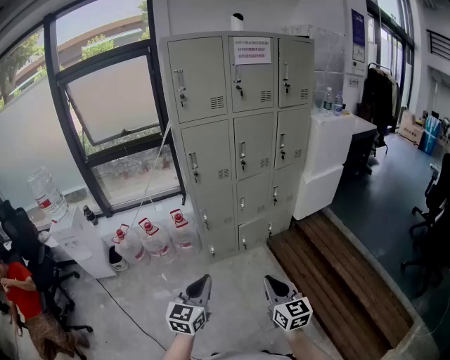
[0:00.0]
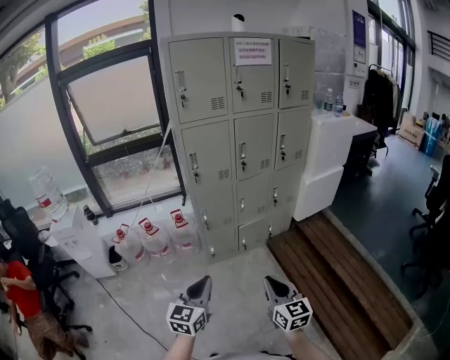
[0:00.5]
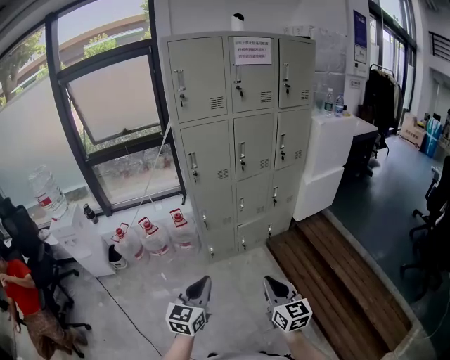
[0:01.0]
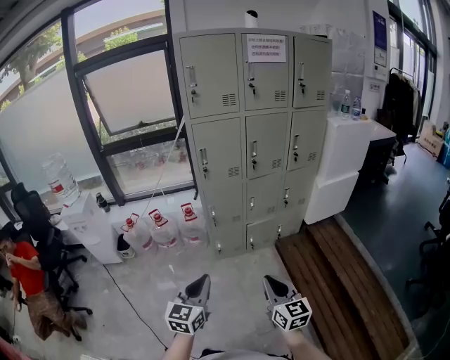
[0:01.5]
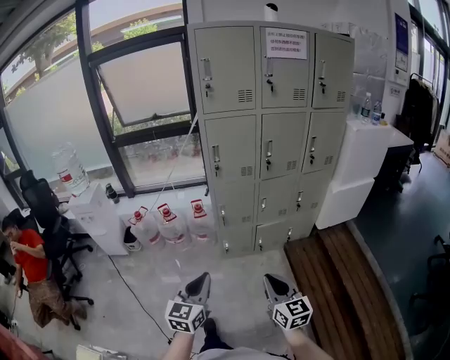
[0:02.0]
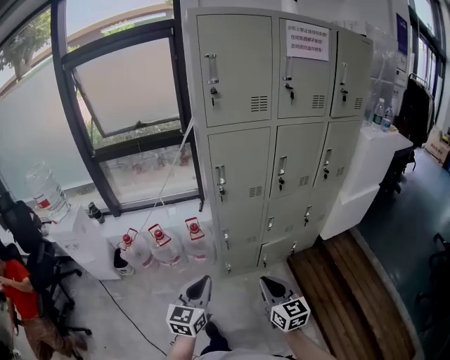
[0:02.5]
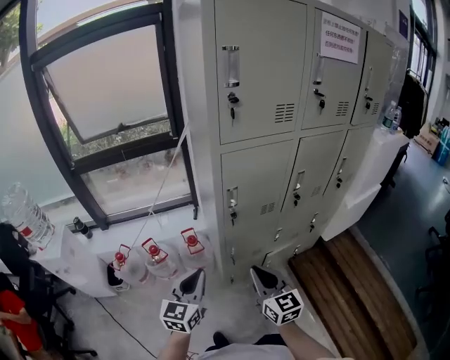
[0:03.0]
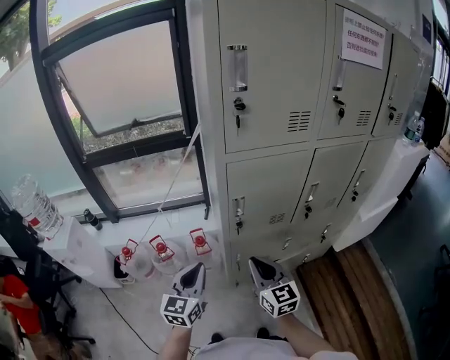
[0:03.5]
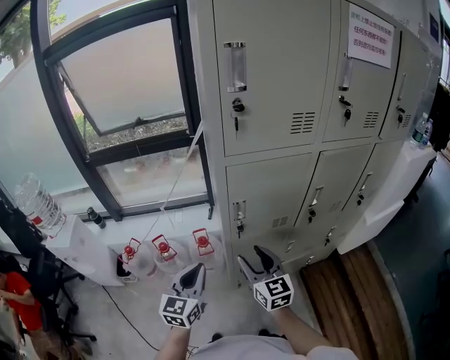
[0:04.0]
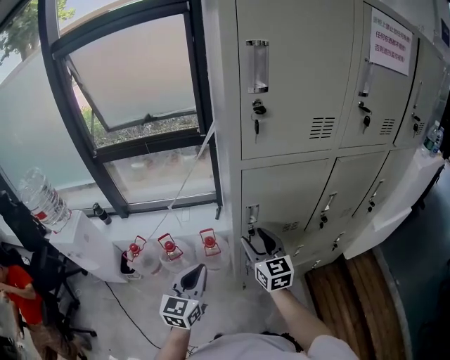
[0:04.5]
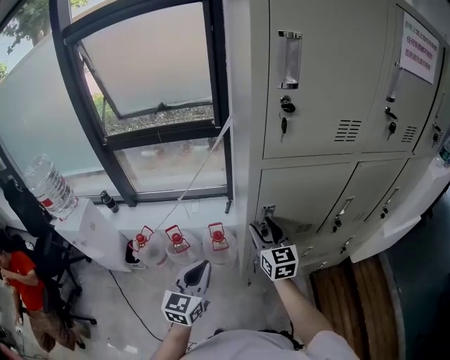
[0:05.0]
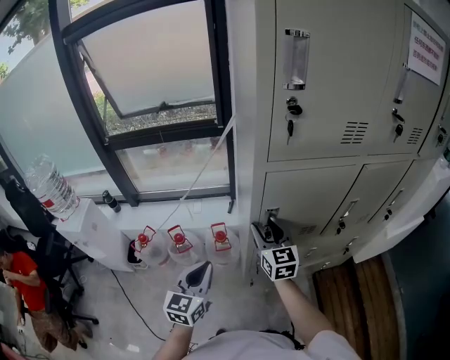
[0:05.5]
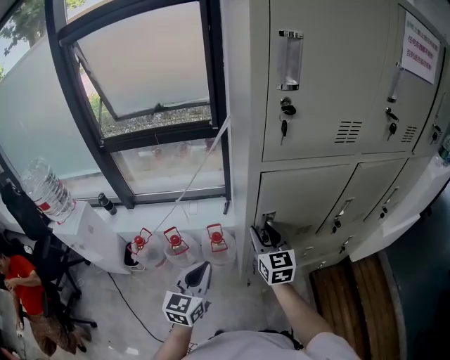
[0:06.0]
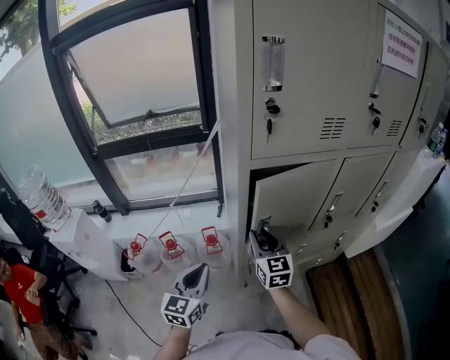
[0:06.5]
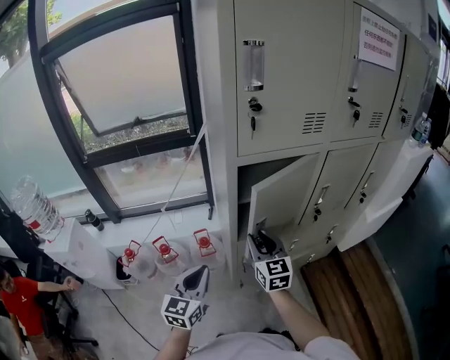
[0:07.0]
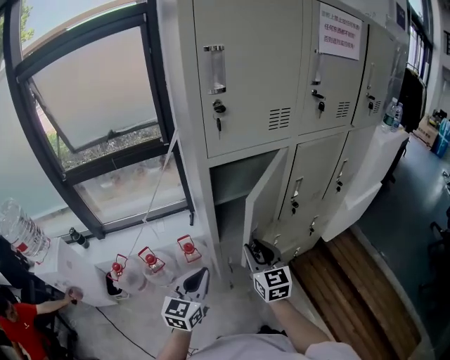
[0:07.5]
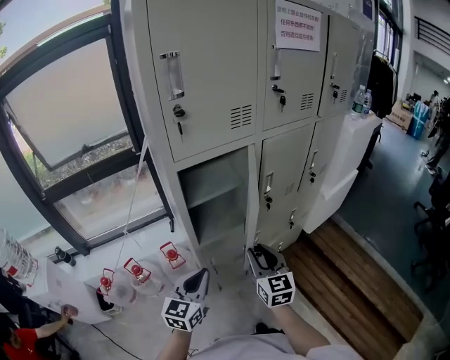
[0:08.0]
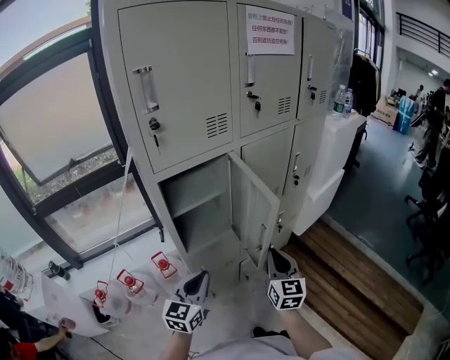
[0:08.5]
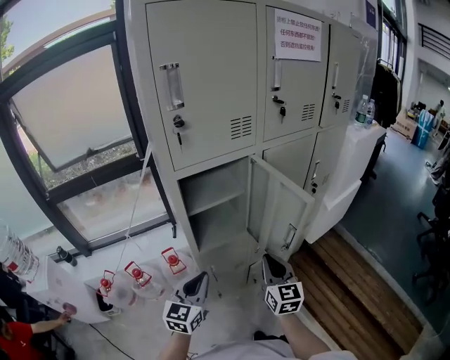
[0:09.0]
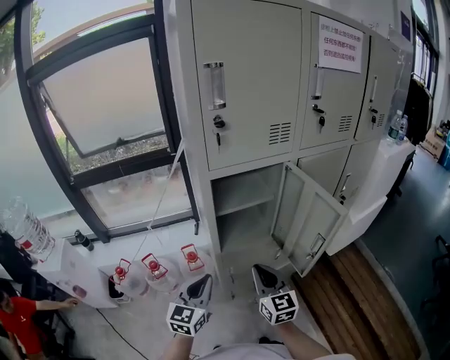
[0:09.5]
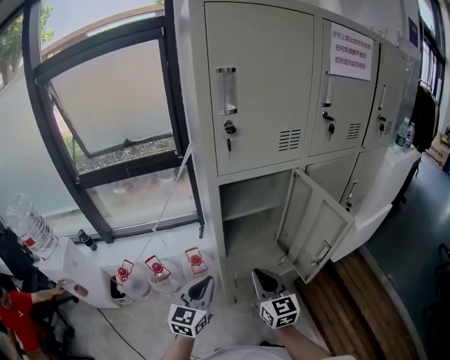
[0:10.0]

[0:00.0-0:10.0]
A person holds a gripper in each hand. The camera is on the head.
0:00.0 to 0:02.0: The right gripper travels forward by approximately 5 cm.
0:02.0 to 0:04.0: Both grippers are carried forward, roughly 50 cm. The right gripper opens.
0:04.0 to 0:06.0: The right gripper heads forward, covering about 15 cm. The left gripper changes place by some 5 cm.
0:06.0 to 0:08.0: The right gripper goes about 20 cm to the right and backward, and changes its angle by about 20 degrees. The left gripper shifts roughly 15 cm to the right, and changes its angle by some 20 degrees.
0:08.0 to 0:10.0: The grippers both shift to the left by roughly 5 cm. The right gripper closes its fingers.

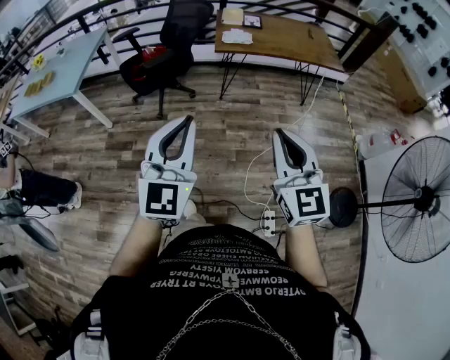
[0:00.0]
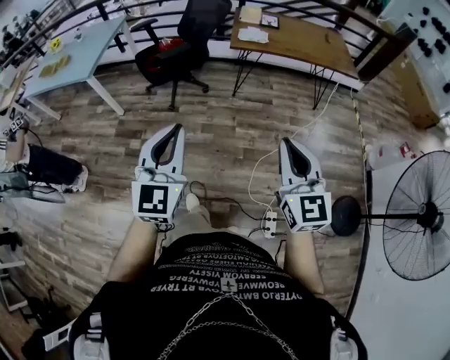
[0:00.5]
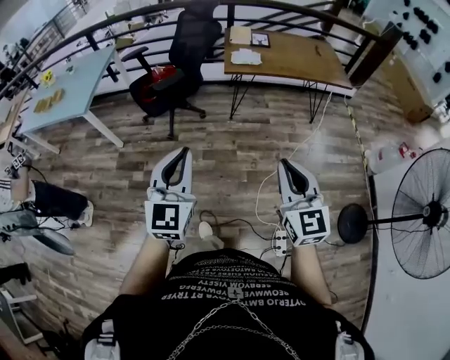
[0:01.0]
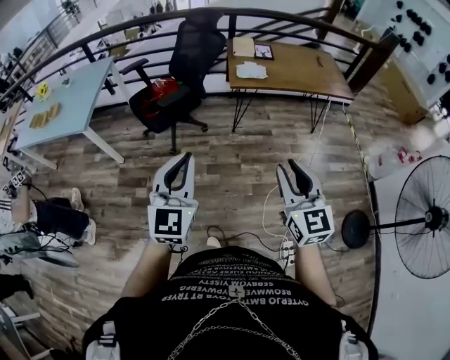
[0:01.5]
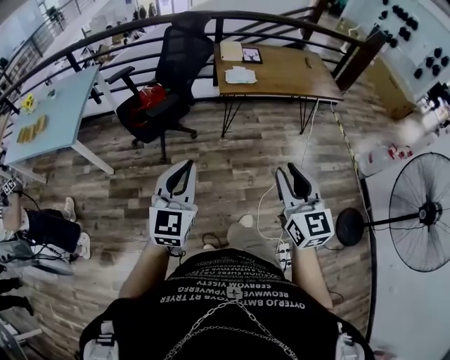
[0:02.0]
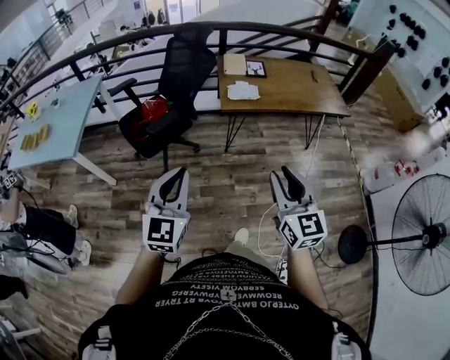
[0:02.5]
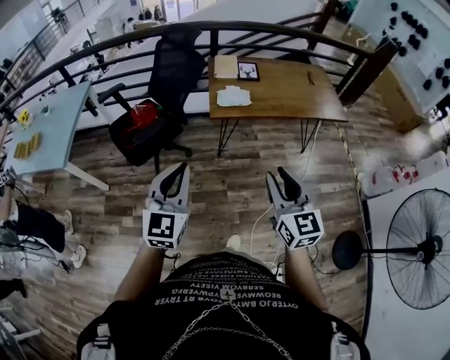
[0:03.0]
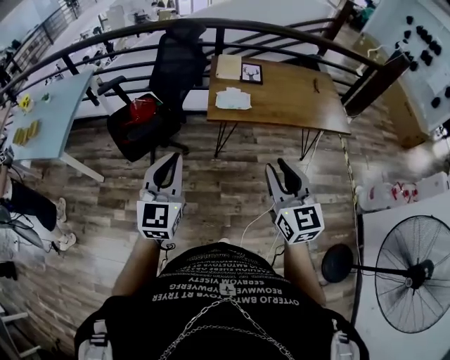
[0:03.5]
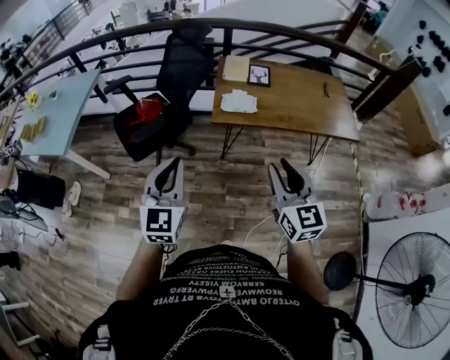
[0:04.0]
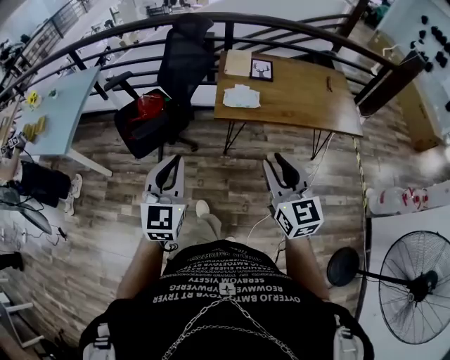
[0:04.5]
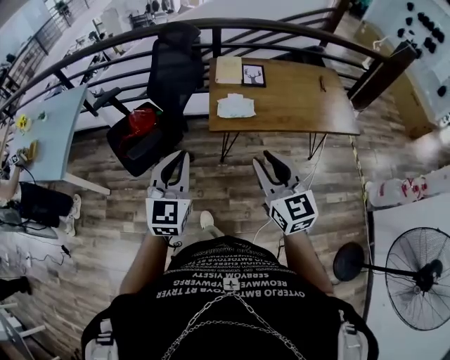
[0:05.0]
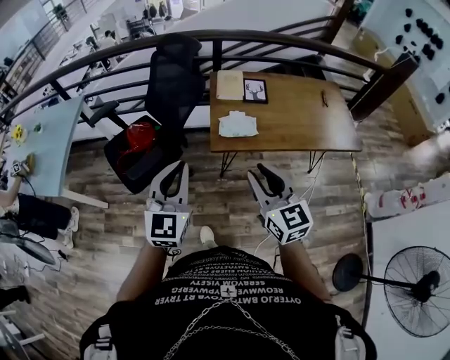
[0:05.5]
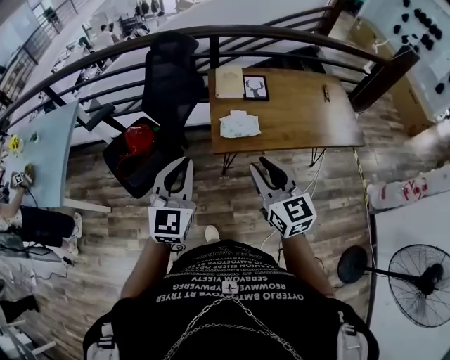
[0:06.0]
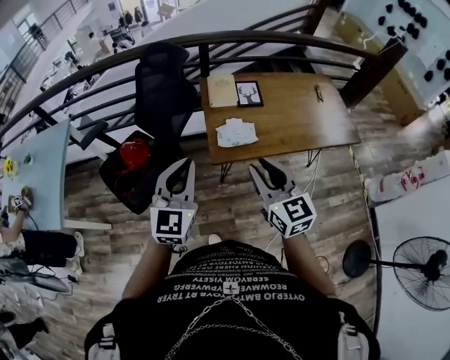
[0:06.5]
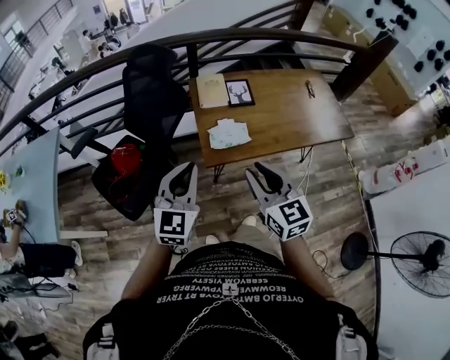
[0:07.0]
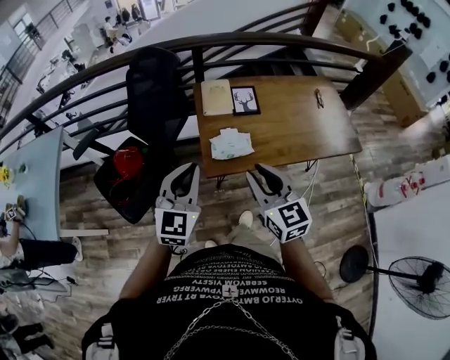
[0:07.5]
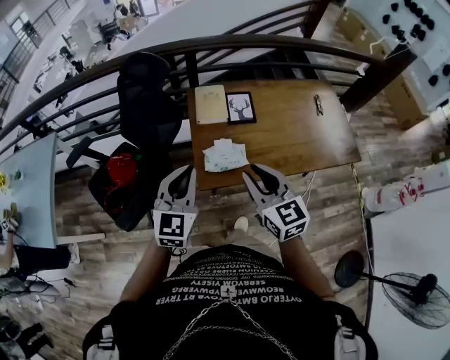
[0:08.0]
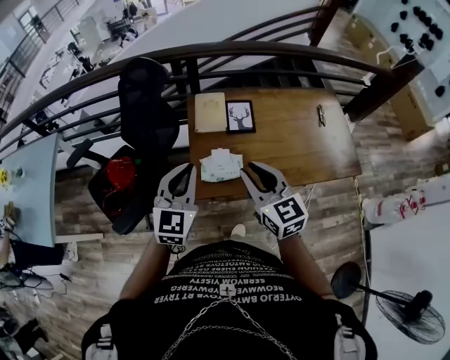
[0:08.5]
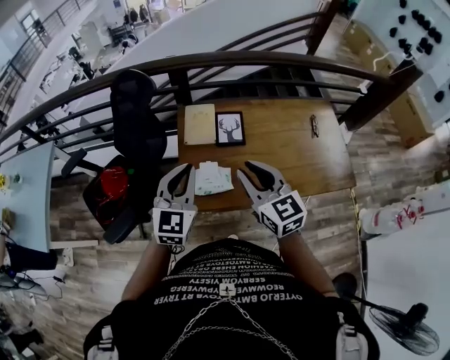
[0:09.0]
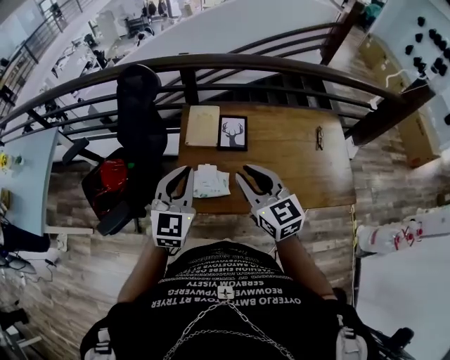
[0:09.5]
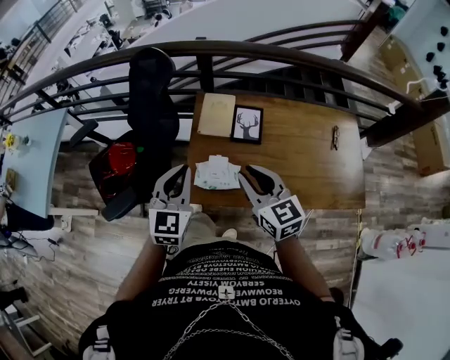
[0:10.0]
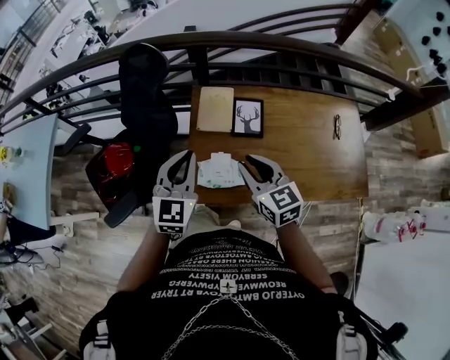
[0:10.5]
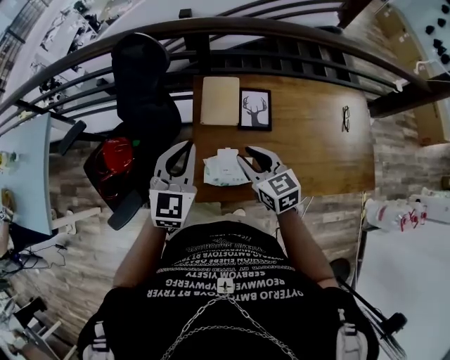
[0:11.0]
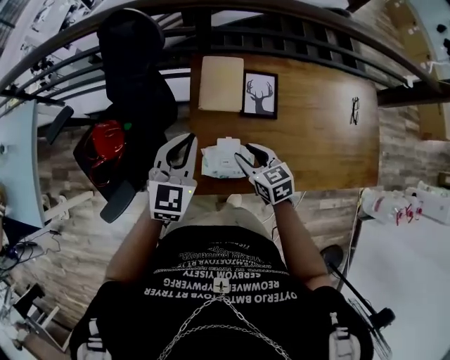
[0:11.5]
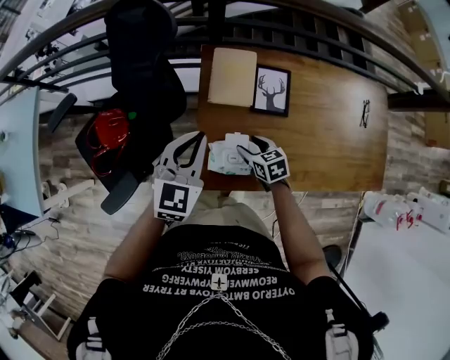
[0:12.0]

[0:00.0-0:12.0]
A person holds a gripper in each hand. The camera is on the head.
0:00.0 to 0:02.0: The left gripper goes approximately 20 cm forward, to the left and downward. The right gripper heads forward and to the left, covering roughly 15 cm, and opens up.
0:02.0 to 0:04.0: The grippers both shift forward and to the right by roughly 30 cm.
0:04.0 to 0:06.0: The right gripper shifts approximately 20 cm forward and to the left. The left gripper moves forward, roughly 20 cm.
0:06.0 to 0:08.0: The two grippers go approximately 15 cm forward.
0:08.0 to 0:10.0: The grippers both shift forward and to the right by some 10 cm.
0:10.0 to 0:12.0: The right gripper heads downward, covering about 30 cm, tips its fingers downward by approximately 30 degrees, and opens up, while the left gripper is displaced forward and downward by approximately 15 cm.

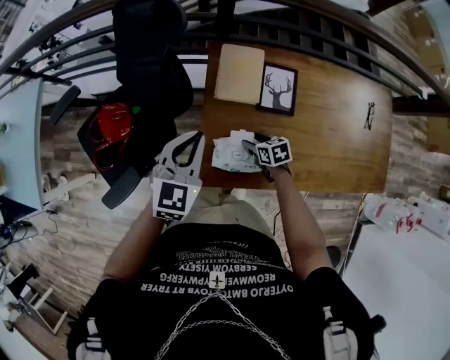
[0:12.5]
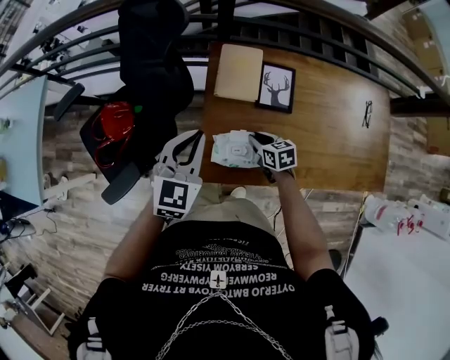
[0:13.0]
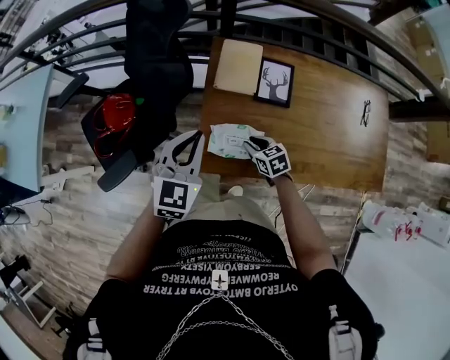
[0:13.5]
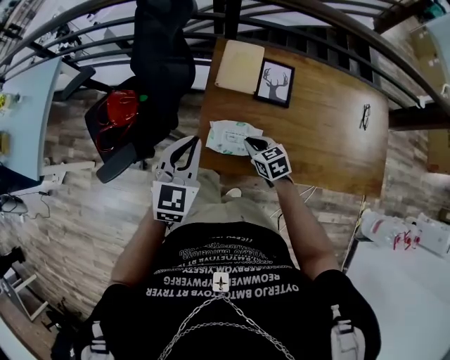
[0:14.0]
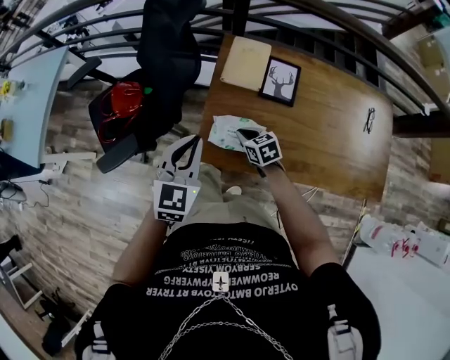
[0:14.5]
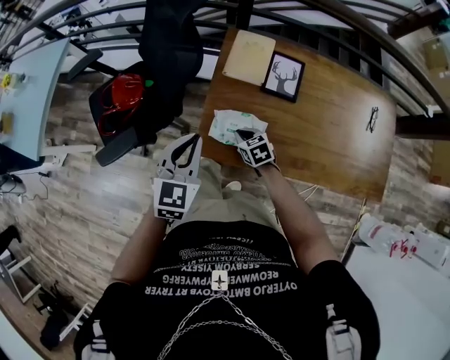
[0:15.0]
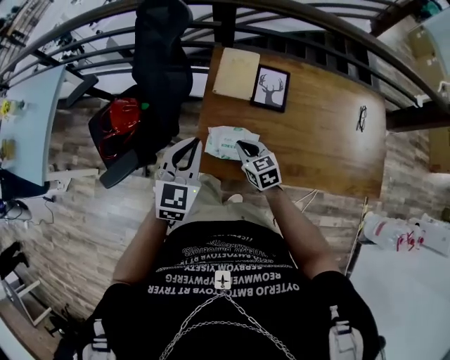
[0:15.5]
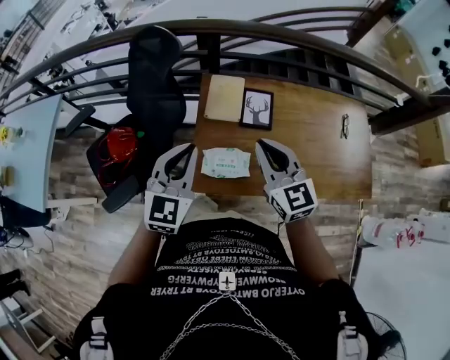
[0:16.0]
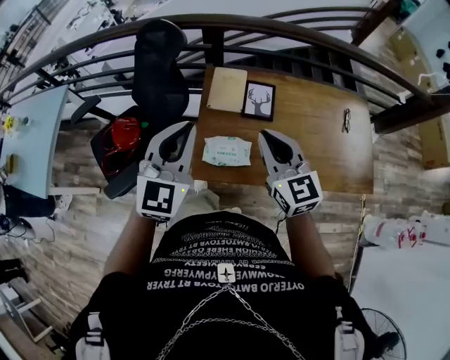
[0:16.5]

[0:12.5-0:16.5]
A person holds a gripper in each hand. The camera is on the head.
0:12.5 to 0:14.5: The left gripper shifts about 15 cm backward. Meanwhile the right gripper heads upward, covering approximately 5 cm, rotates about 20 degrees, and closes.
0:14.5 to 0:16.5: The left gripper is displaced upward by approximately 15 cm. The right gripper goes roughly 35 cm upward, and points its fingers approximately 30 degrees further upward.

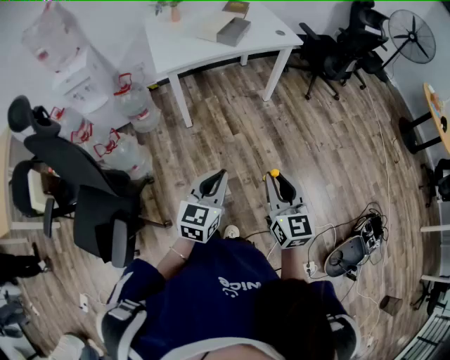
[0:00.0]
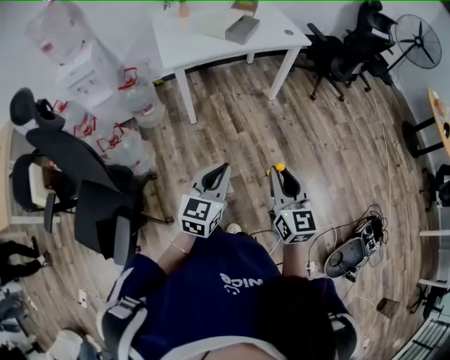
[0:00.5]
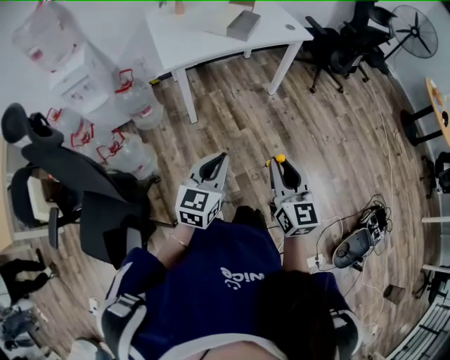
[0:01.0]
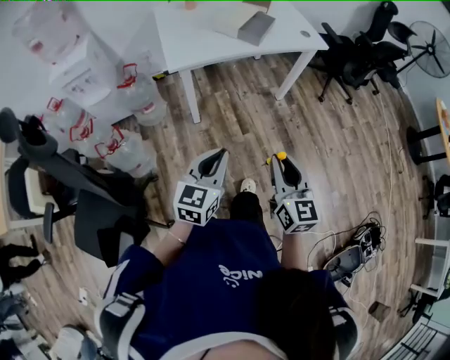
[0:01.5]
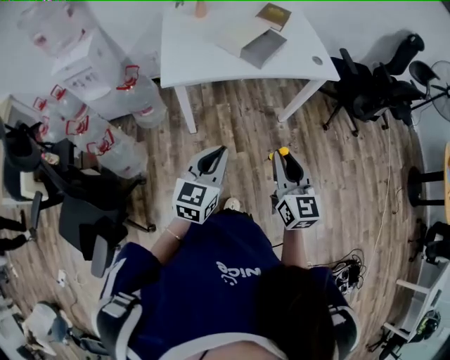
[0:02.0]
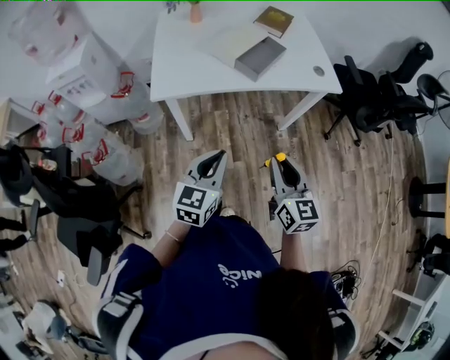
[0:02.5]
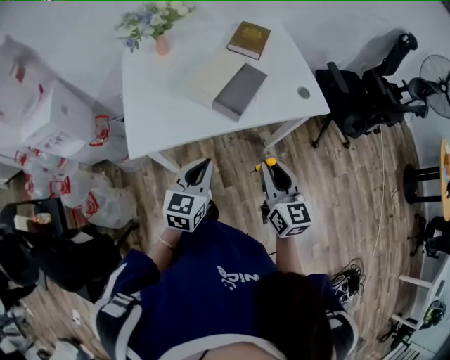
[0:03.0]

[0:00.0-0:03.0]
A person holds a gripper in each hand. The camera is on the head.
0:00.0 to 0:01.5: The two grippers go approximately 20 cm forward and to the left.
0:01.5 to 0:03.0: The two grippers travel together, forward, some 40 cm.
